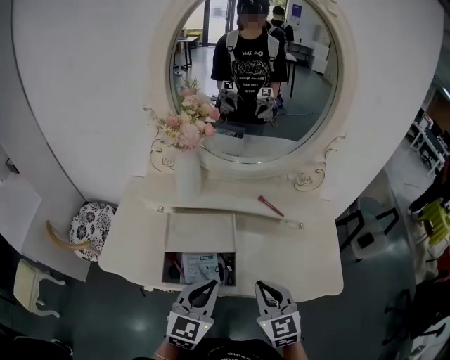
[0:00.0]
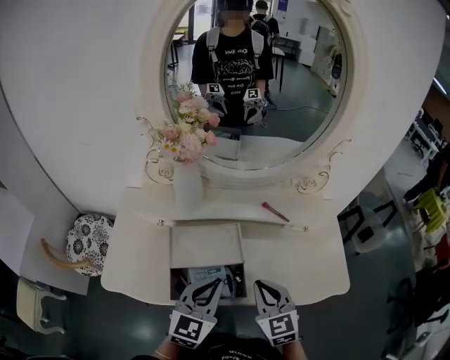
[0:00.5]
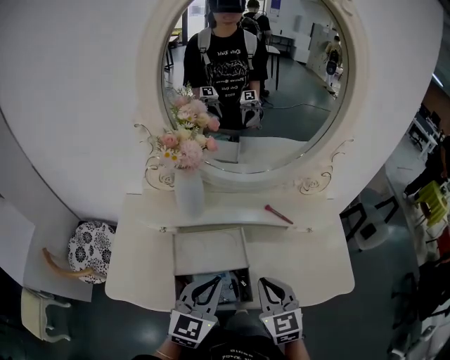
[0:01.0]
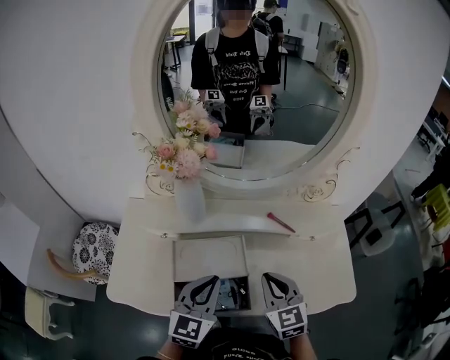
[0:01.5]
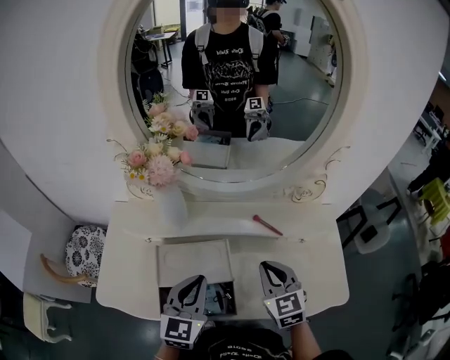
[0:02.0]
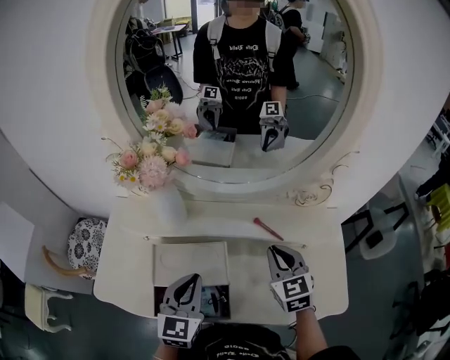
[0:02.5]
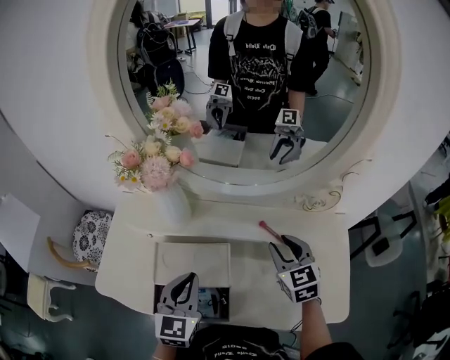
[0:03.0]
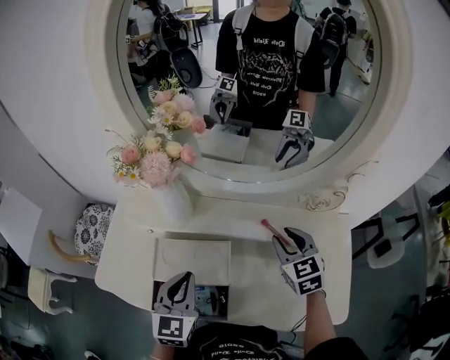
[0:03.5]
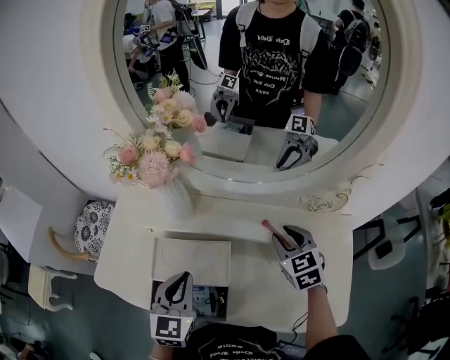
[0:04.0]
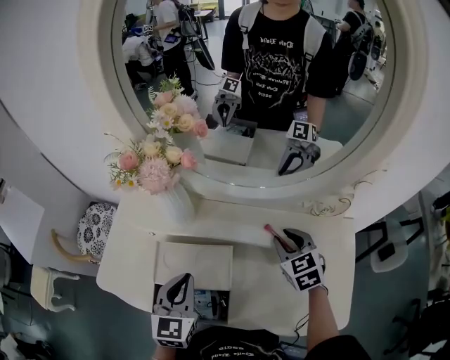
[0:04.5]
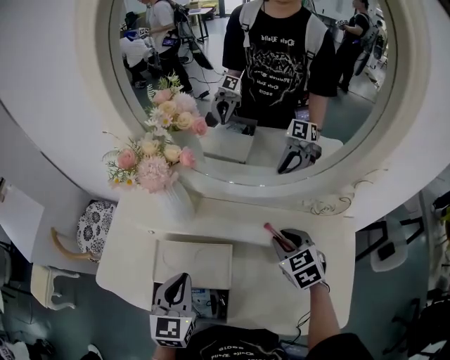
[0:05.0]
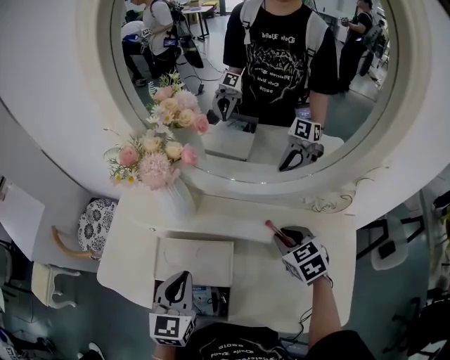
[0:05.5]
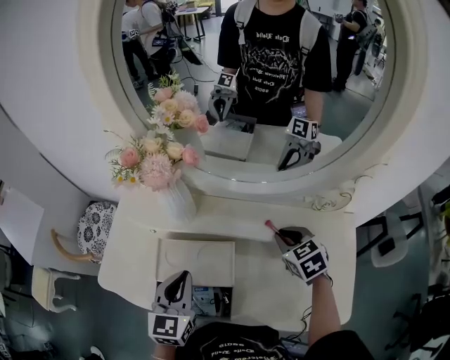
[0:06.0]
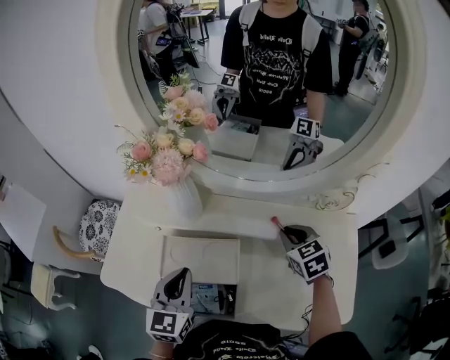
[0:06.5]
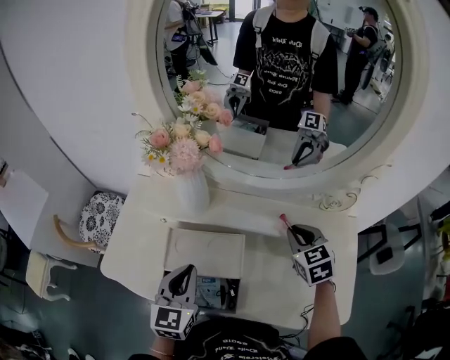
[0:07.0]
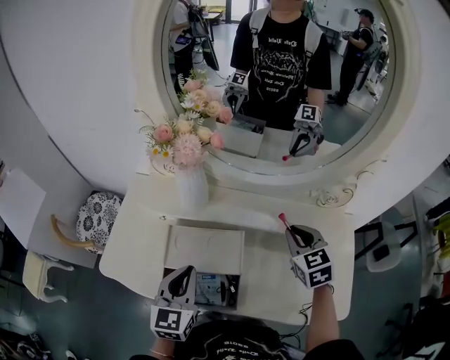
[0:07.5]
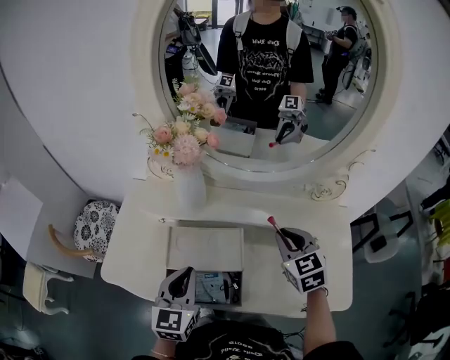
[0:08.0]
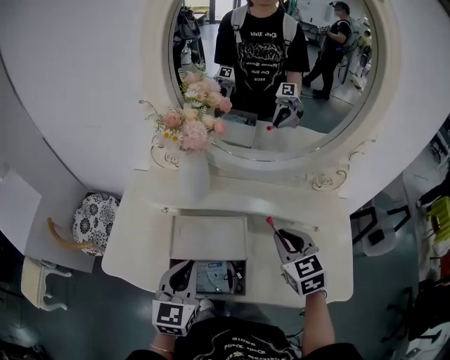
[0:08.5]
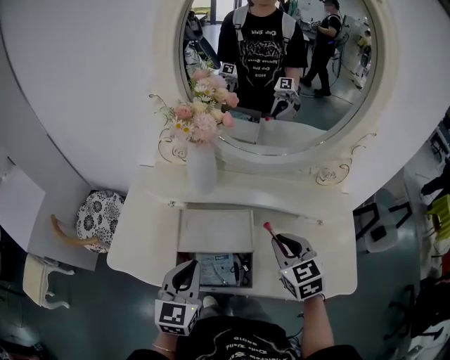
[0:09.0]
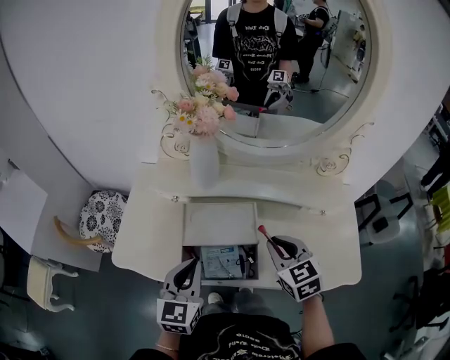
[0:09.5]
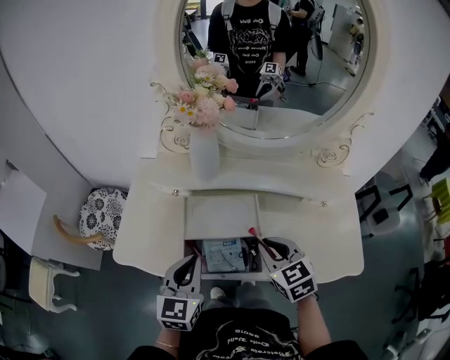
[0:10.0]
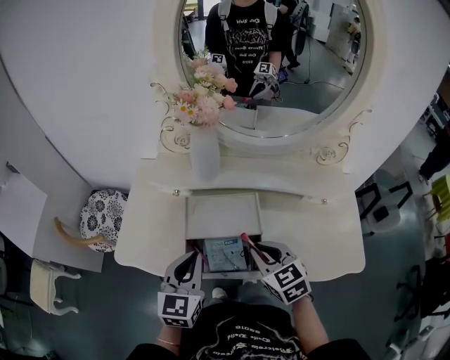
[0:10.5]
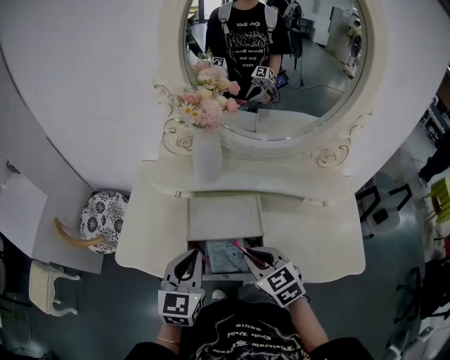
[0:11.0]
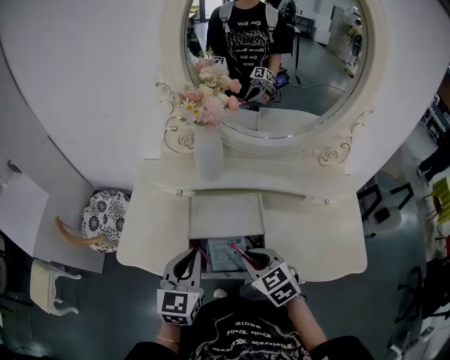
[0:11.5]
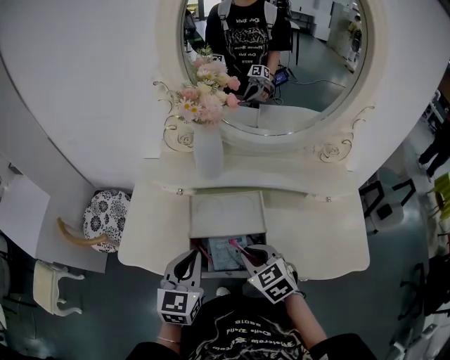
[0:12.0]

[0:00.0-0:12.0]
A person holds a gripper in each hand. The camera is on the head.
0:00.0 to 0:02.0: The two grippers go about 15 cm forward.
0:02.0 to 0:04.0: The right gripper travels forward and to the right by approximately 15 cm, and opens.
0:04.0 to 0:06.0: The right gripper closes its fingers.
0:06.0 to 0:08.0: The right gripper shifts some 10 cm upward and backward.
0:08.0 to 0:10.0: The left gripper goes about 5 cm backward. Meanwhile the right gripper moves backward and to the left, roughly 15 cm.
0:10.0 to 0:12.0: The right gripper moves to the left and downward, about 10 cm.

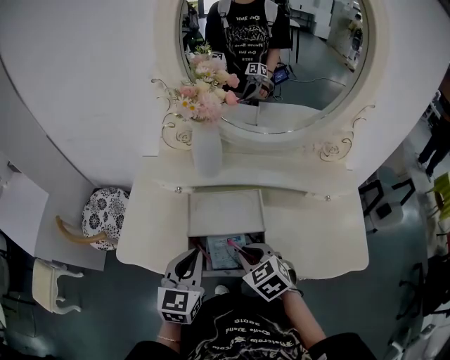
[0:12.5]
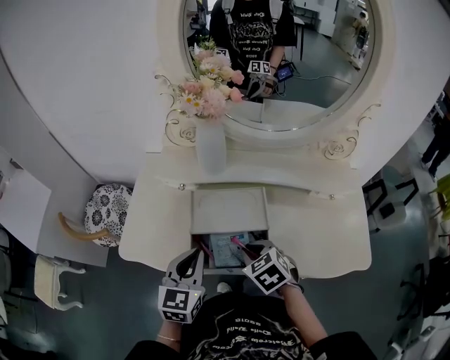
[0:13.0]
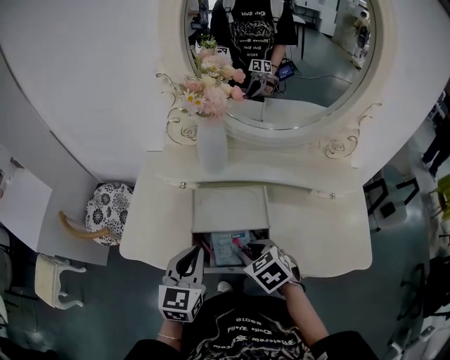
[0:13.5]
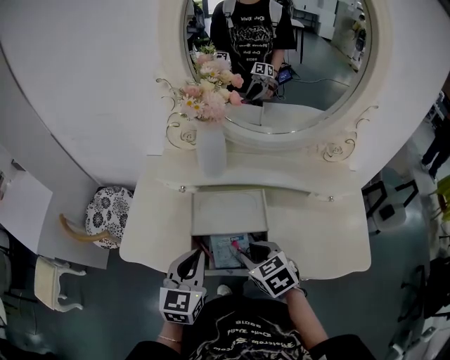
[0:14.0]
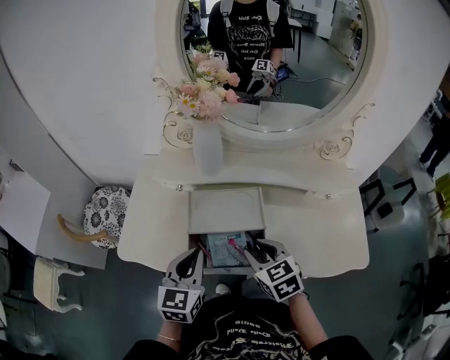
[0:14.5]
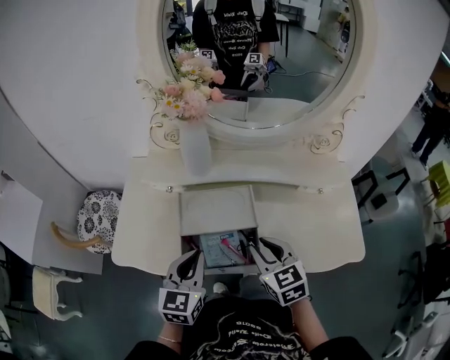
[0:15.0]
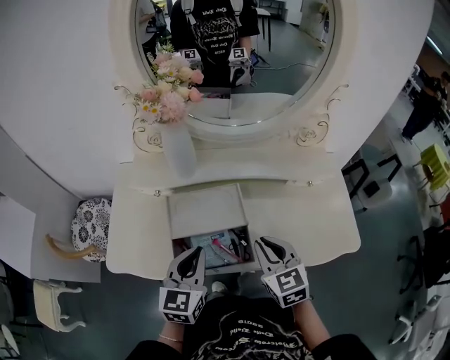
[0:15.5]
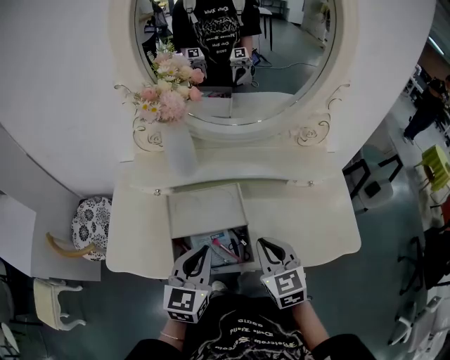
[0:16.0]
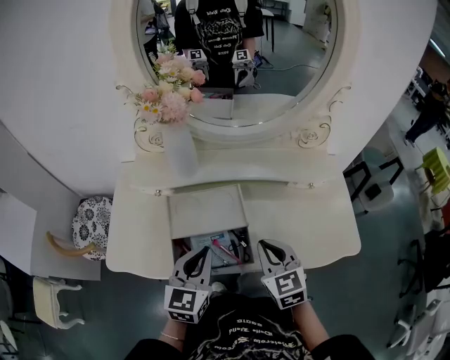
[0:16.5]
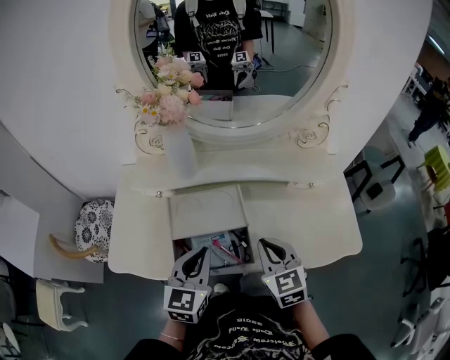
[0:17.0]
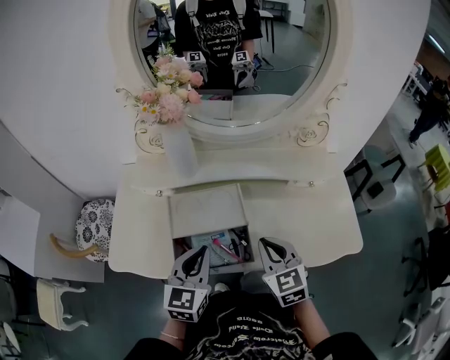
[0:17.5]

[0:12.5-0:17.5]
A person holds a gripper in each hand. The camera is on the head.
0:12.5 to 0:15.0: The right gripper goes roughly 5 cm to the right, and changes its angle by some 20 degrees.
0:15.0 to 0:17.5: The right gripper closes its fingers.

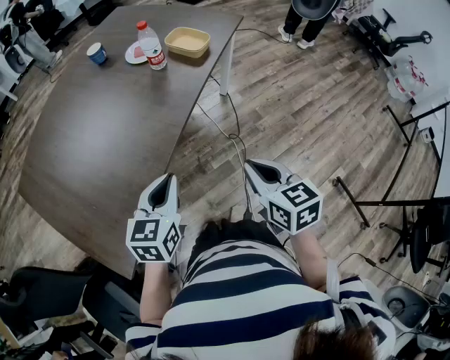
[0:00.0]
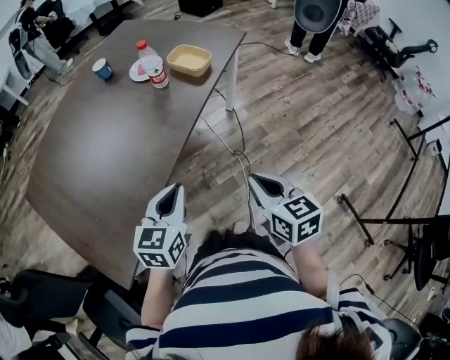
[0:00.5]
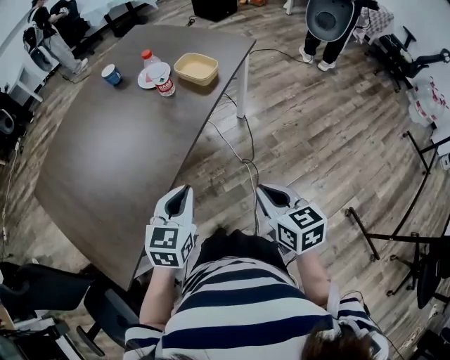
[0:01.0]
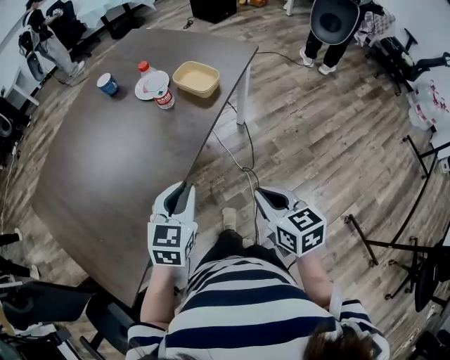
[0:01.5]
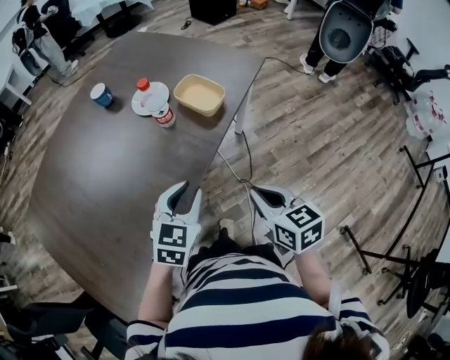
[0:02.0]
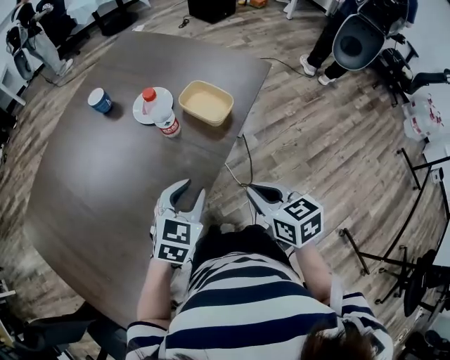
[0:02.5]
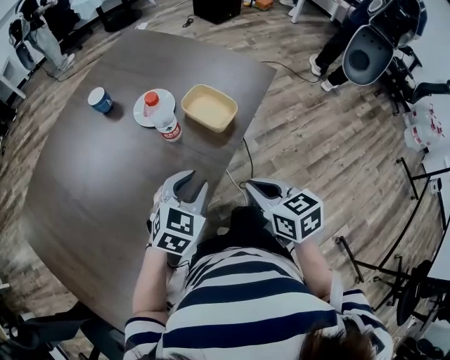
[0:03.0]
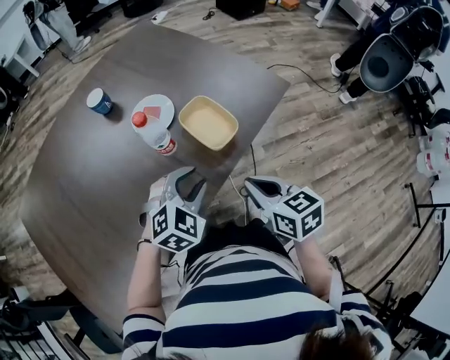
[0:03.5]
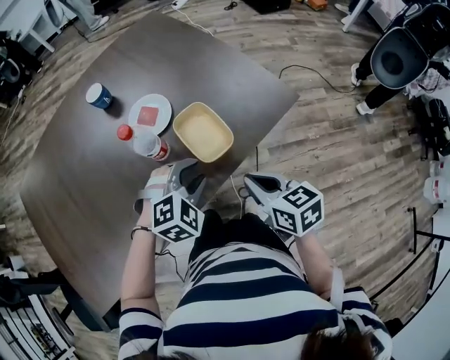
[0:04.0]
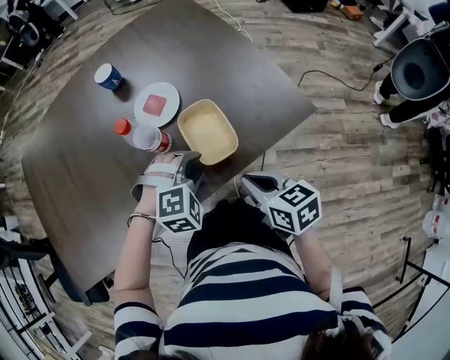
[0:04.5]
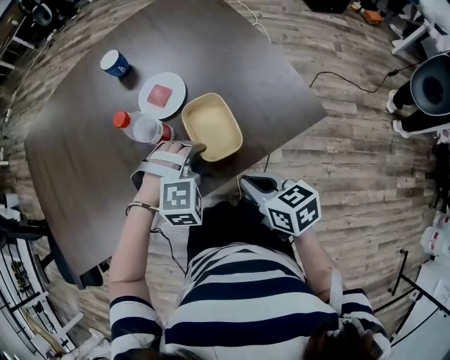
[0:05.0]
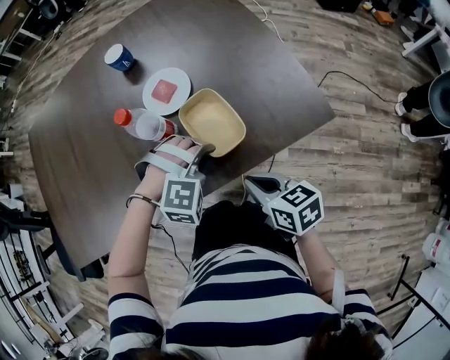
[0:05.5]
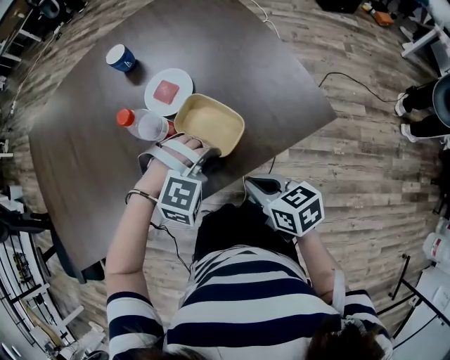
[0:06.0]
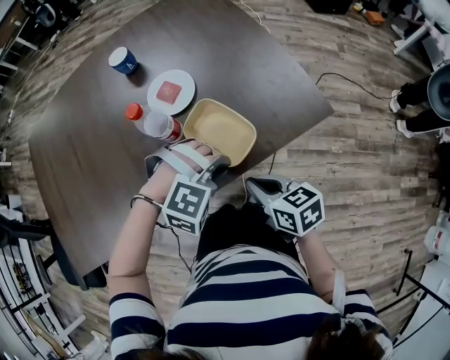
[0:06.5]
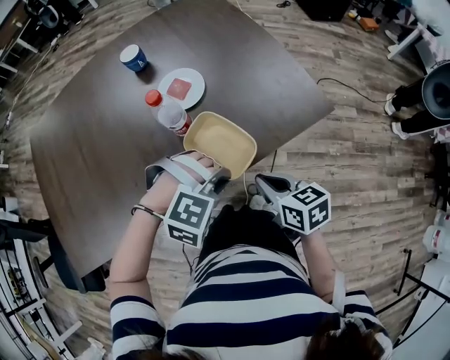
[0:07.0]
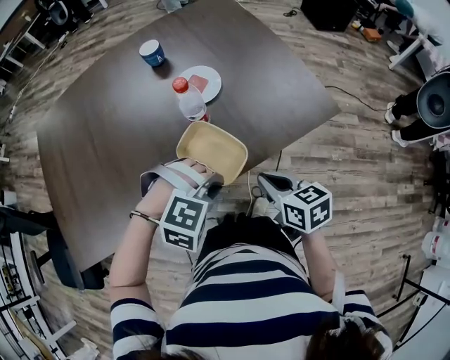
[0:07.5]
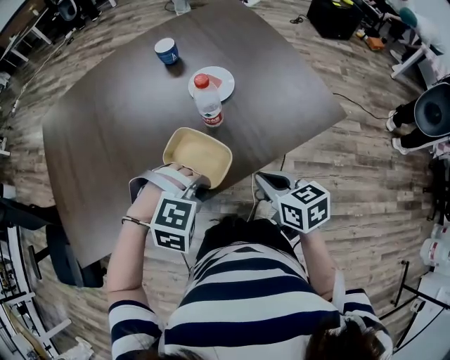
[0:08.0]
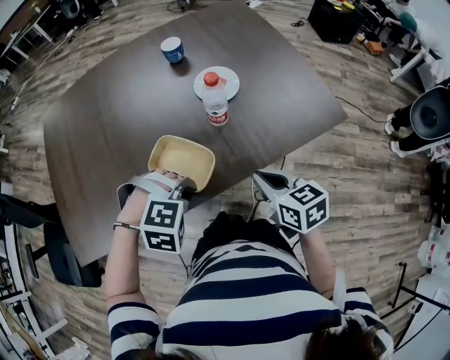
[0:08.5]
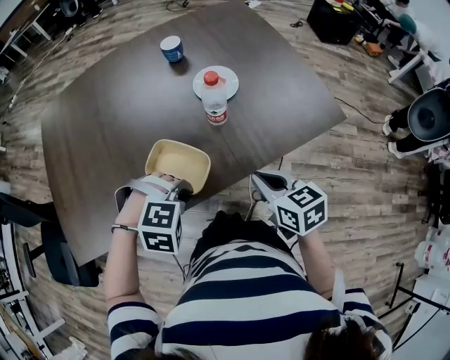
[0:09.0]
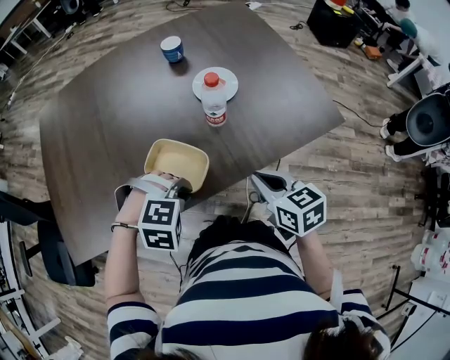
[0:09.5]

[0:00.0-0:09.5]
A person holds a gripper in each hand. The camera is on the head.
0:00.0 to 0:02.0: The left gripper travels forward and to the right by roughly 25 cm. Meanwhile the right gripper travels forward by some 20 cm.
0:02.0 to 0:04.0: The right gripper goes approximately 30 cm forward, and swivels approximately 20 degrees; the left gripper heads forward and to the right, covering some 30 cm, and rotates some 40 degrees.
0:04.0 to 0:05.5: The grippers both shift downward by about 5 cm. The left gripper changes its angle by roughly 30 degrees; the right gripper swivels about 20 degrees.
0:05.5 to 0:07.5: The right gripper shifts about 10 cm to the left and backward; the left gripper moves backward and to the left, approximately 20 cm.
0:07.5 to 0:09.5: The right gripper travels to the left by some 5 cm. Meanwhile the left gripper moves to the left, some 15 cm.
